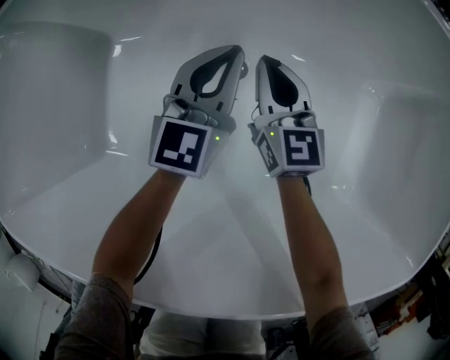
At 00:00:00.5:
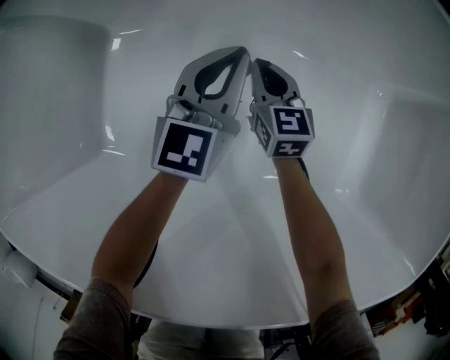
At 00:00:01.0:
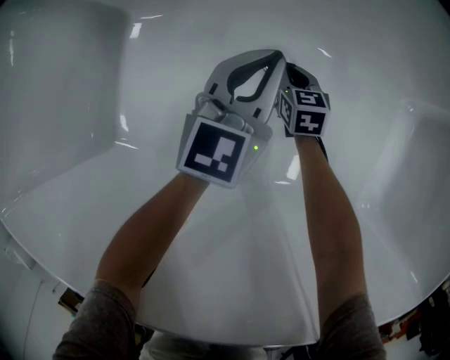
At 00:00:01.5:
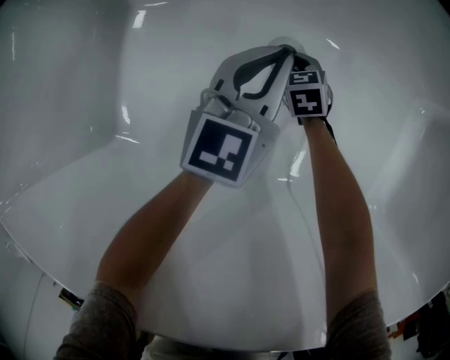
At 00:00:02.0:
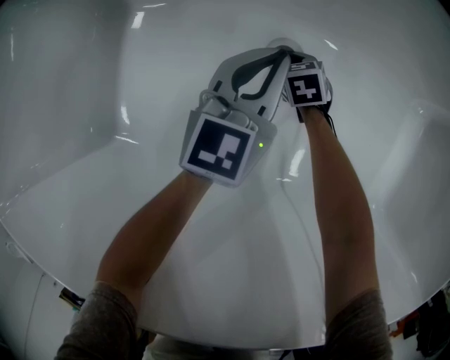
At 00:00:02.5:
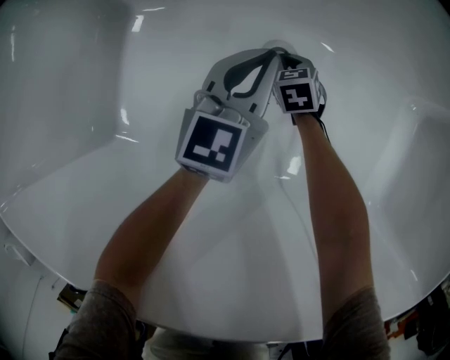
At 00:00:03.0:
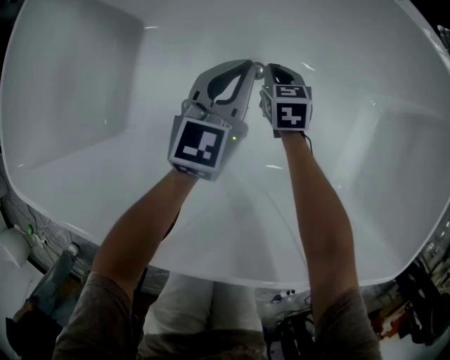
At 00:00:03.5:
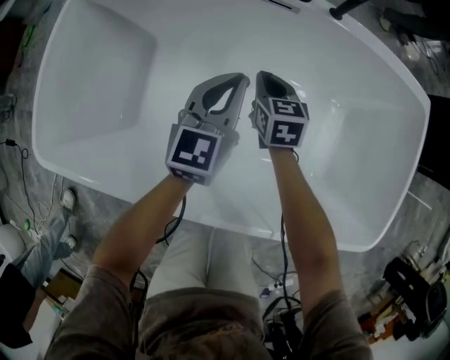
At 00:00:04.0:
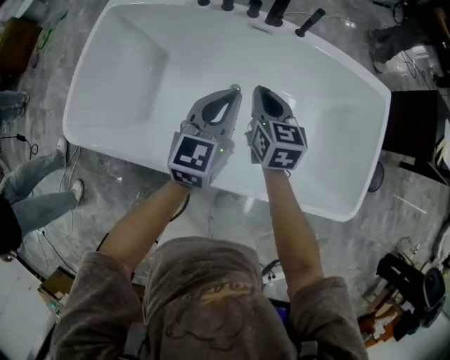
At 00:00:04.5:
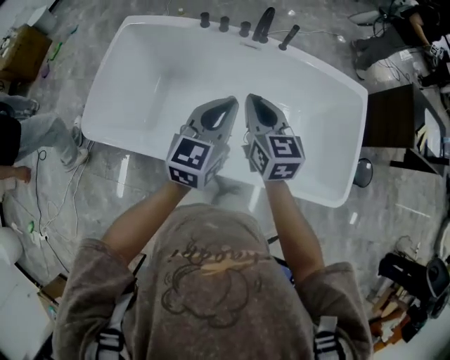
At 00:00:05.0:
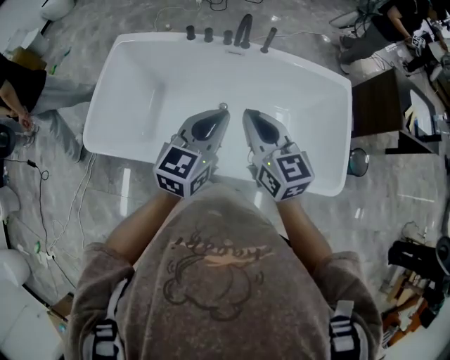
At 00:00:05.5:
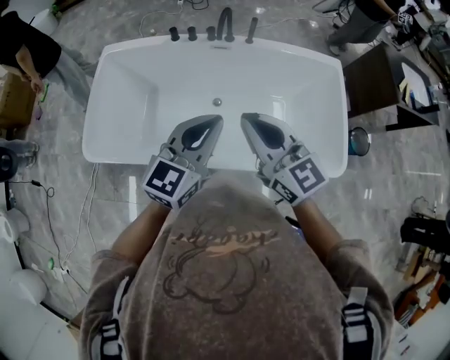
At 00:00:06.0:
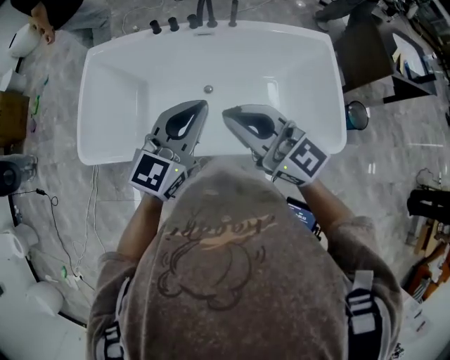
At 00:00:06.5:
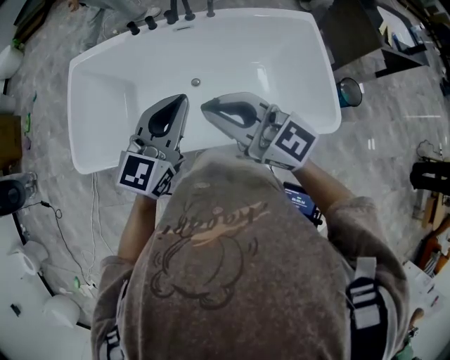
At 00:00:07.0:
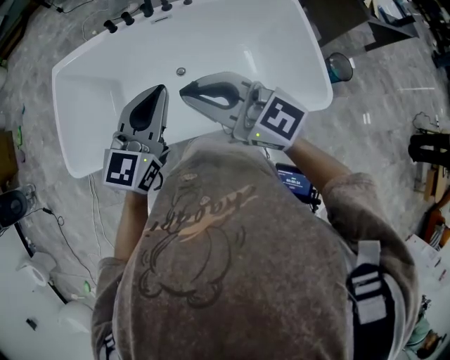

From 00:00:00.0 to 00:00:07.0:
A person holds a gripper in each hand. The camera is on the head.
From 00:00:00.0 to 00:00:02.0: The right gripper travels downward by about 30 cm, and points its fingers roughly 40 degrees further downward; the left gripper goes approximately 10 cm downward.
From 00:00:02.0 to 00:00:03.5: Both grippers move upward, some 40 cm. The right gripper swivels approximately 20 degrees.
From 00:00:03.5 to 00:00:05.0: Both grippers move upward and backward, approximately 50 cm. The right gripper turns by about 30 degrees.
From 00:00:05.0 to 00:00:07.0: The left gripper moves some 5 cm; the right gripper shifts some 10 cm backward, and swivels approximately 30 degrees.

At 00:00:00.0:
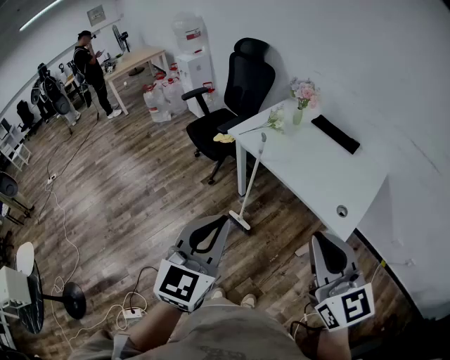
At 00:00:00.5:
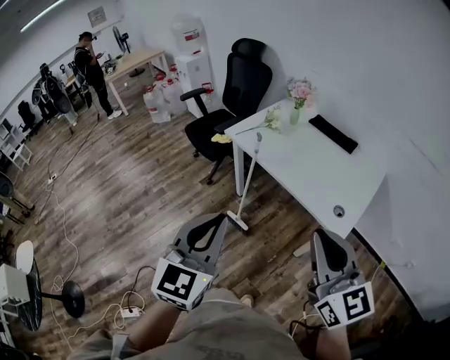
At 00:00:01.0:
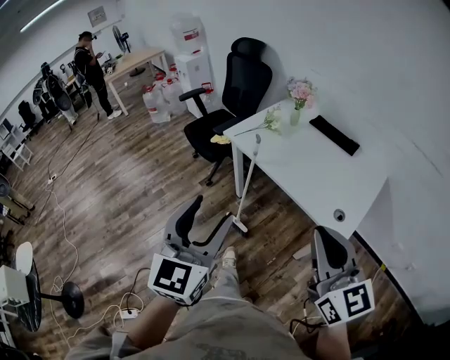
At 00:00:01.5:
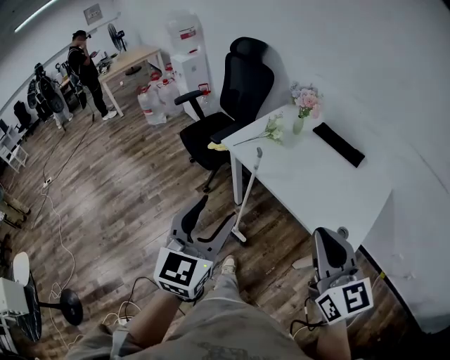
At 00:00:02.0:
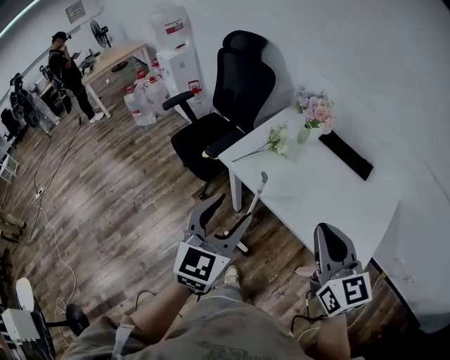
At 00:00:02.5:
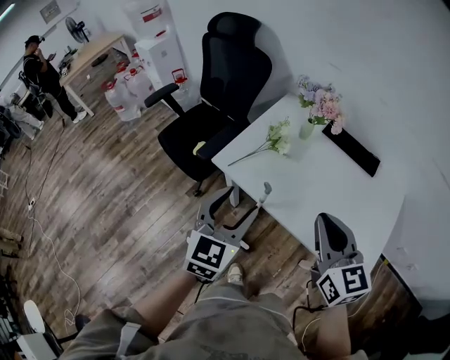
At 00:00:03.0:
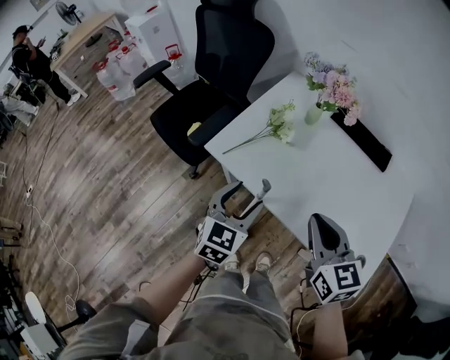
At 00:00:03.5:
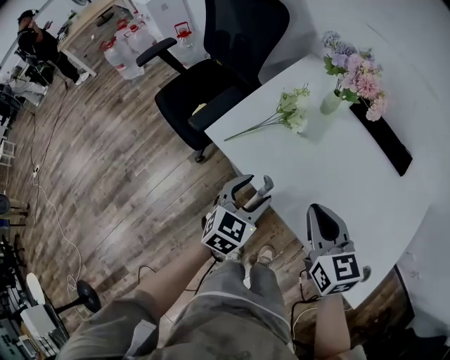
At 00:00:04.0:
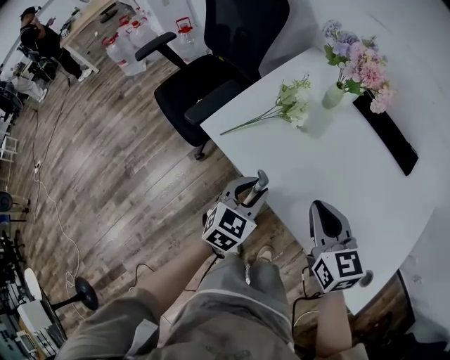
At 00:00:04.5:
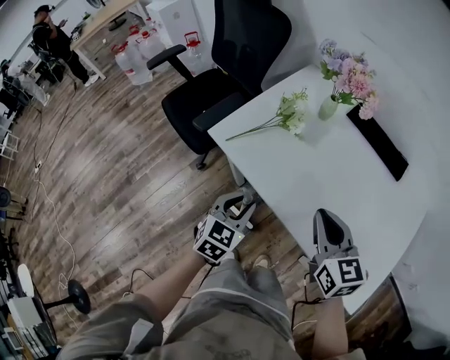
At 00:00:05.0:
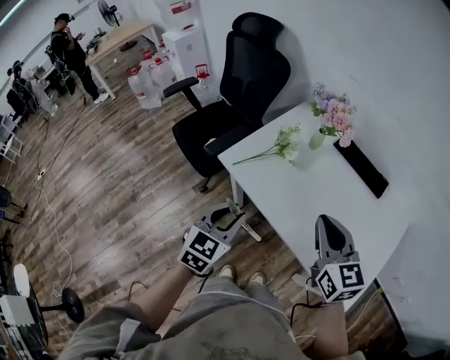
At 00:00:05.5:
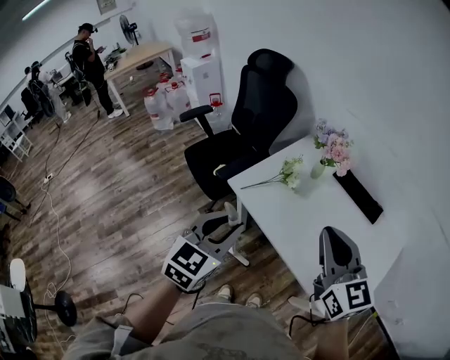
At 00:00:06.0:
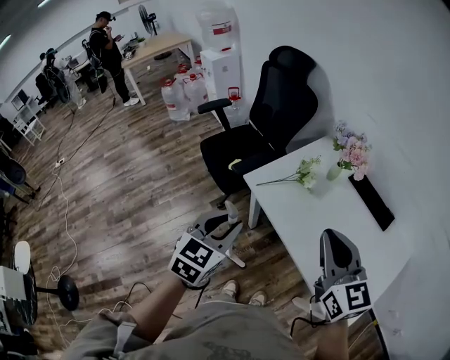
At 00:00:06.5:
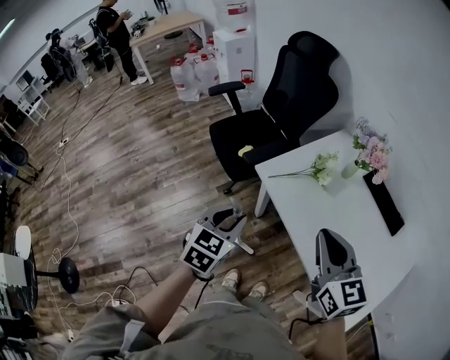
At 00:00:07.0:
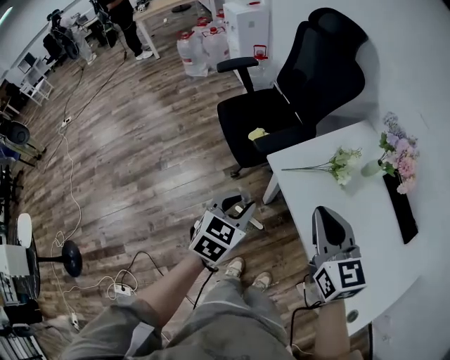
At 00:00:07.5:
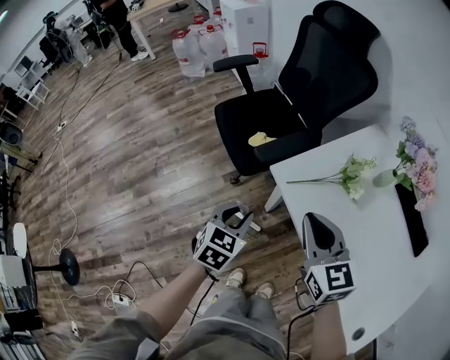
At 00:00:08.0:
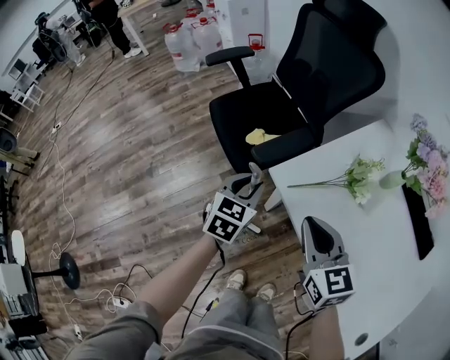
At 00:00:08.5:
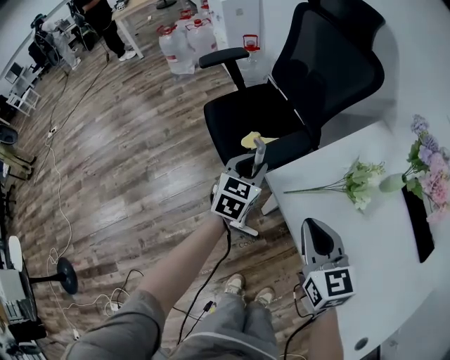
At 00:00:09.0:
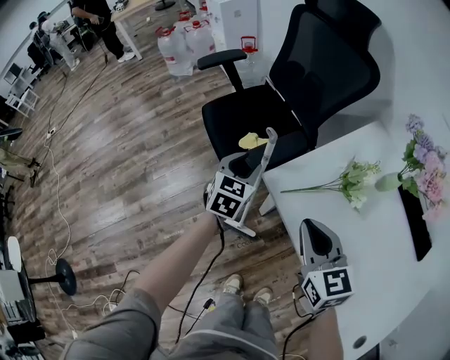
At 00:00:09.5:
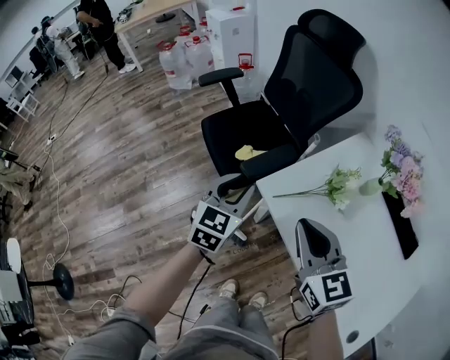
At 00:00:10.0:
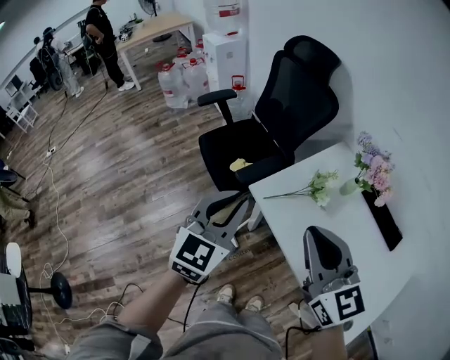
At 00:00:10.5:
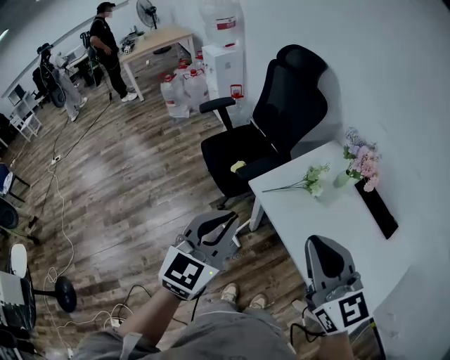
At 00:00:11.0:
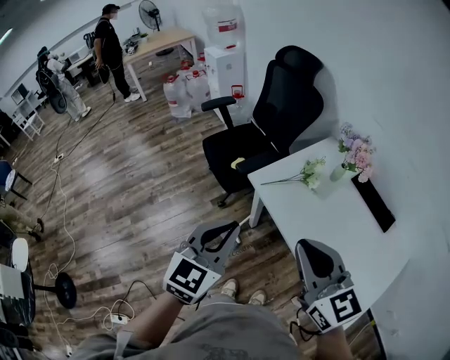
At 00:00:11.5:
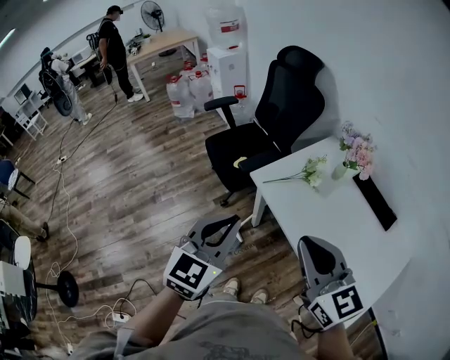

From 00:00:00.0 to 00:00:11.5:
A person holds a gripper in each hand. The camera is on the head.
From 00:00:00.0 to 00:00:02.0: The two grippers go approximately 30 cm forward. The left gripper opens its fingers.
From 00:00:02.0 to 00:00:04.0: Both grippers move downward and forward, some 35 cm. The left gripper changes its angle by about 30 degrees, and closes its fingers.
From 00:00:04.0 to 00:00:06.0: The left gripper travels upward, to the left and backward by roughly 30 cm. Meanwhile the right gripper shifts about 25 cm upward, and turns by some 20 degrees.
From 00:00:06.0 to 00:00:07.5: The right gripper shifts some 30 cm downward, forward and to the left, while the left gripper heads downward and forward, covering some 25 cm.
From 00:00:07.5 to 00:00:09.5: The left gripper heads forward and upward, covering some 15 cm.
From 00:00:09.5 to 00:00:11.5: Both grippers move backward and upward, about 30 cm. The left gripper closes up.

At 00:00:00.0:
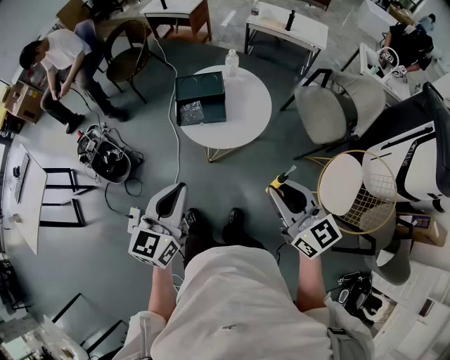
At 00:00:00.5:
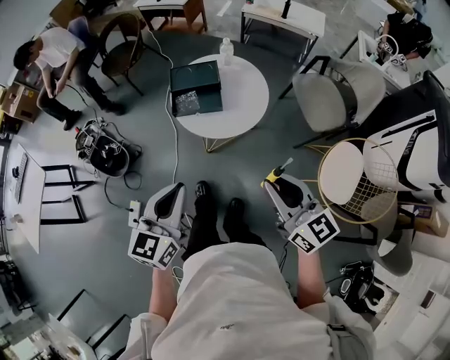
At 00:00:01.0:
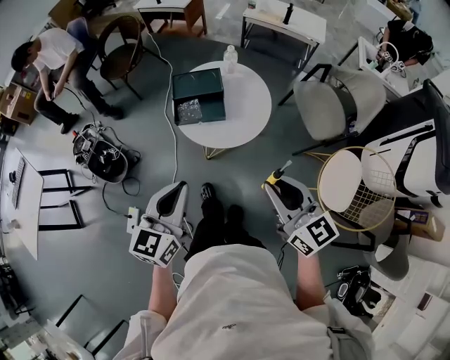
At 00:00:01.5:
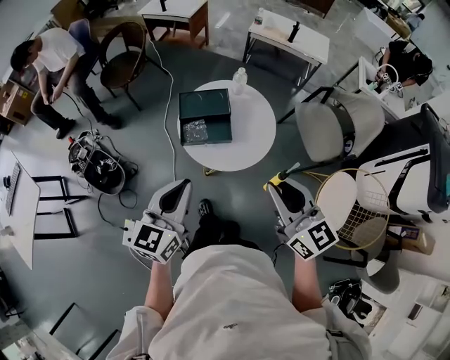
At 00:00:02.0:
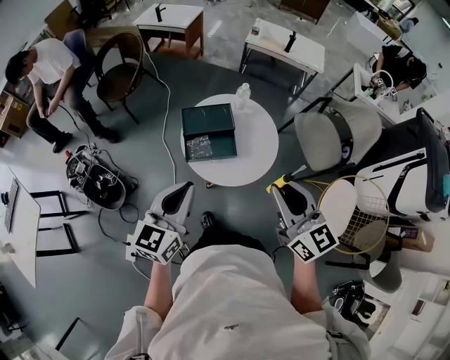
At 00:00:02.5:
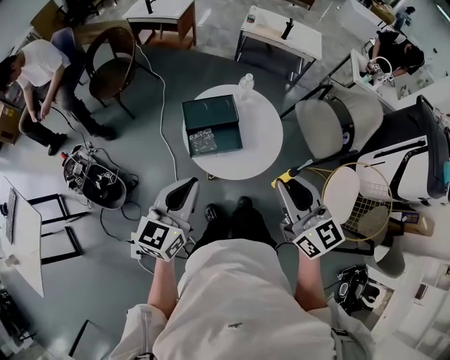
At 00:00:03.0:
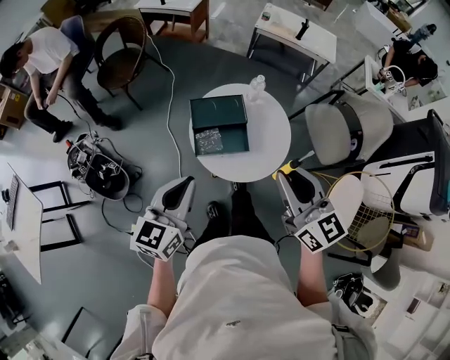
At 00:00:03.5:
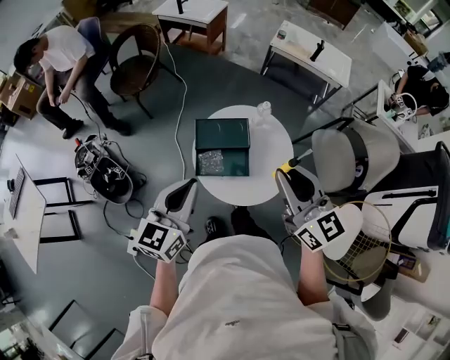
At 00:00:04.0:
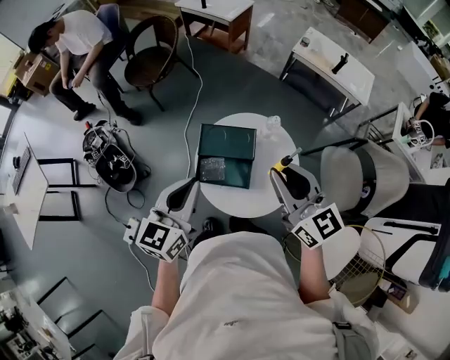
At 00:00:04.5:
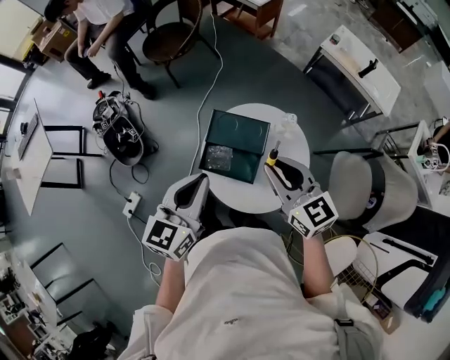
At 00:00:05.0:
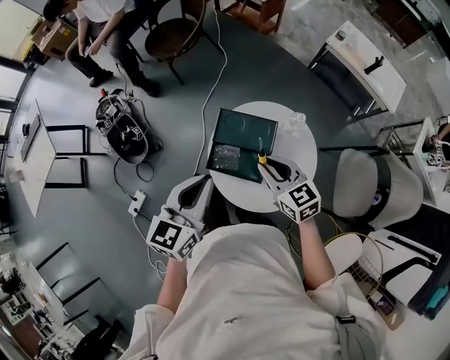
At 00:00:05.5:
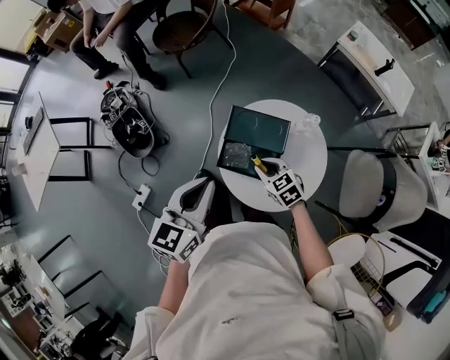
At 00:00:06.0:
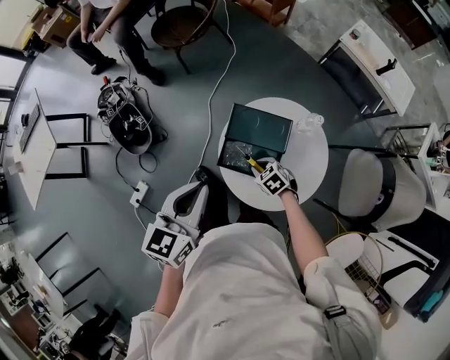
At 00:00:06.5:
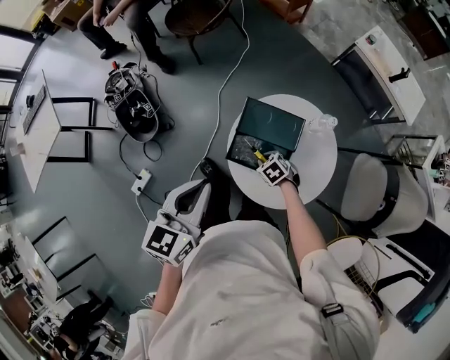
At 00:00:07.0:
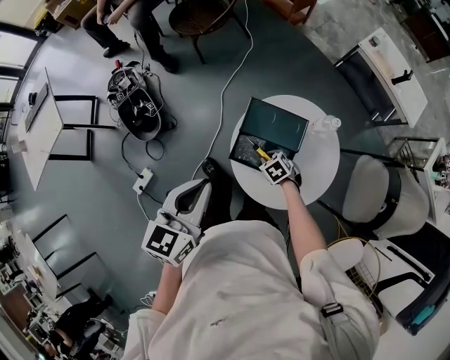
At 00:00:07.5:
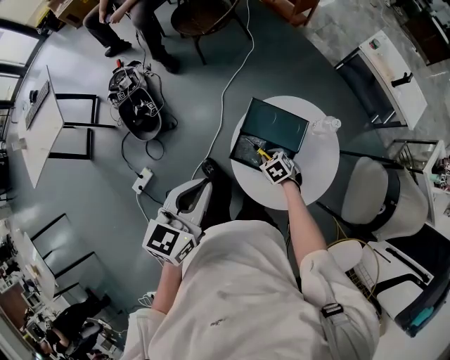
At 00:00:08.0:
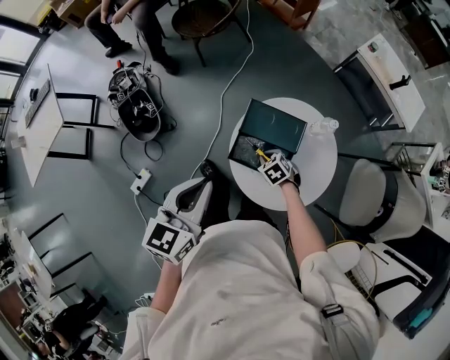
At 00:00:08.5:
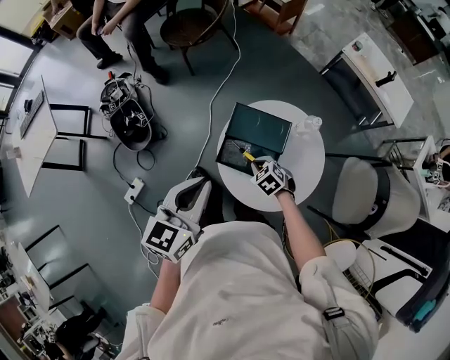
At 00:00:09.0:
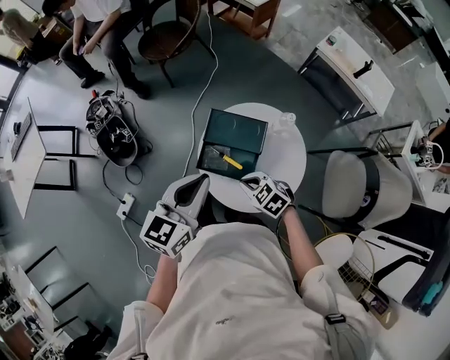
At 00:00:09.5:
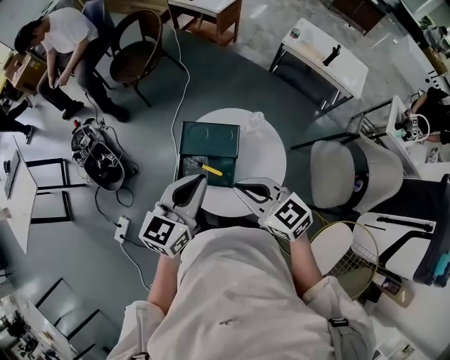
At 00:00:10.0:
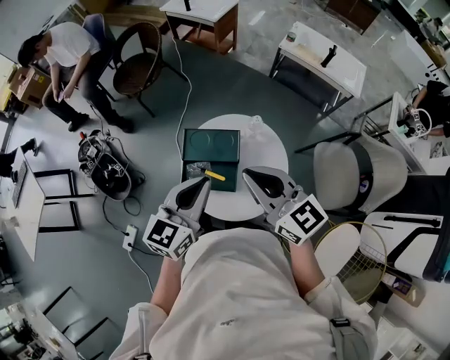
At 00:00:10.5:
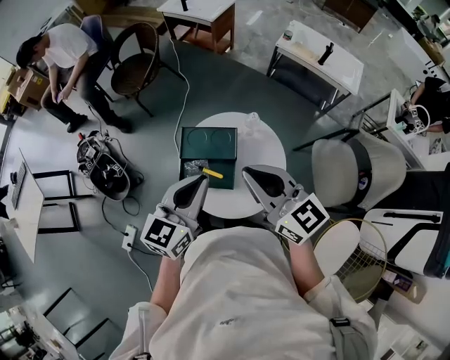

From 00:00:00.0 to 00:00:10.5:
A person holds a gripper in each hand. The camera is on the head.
From 00:00:00.0 to 00:00:02.0: The grippers both shift forward and to the left by approximately 20 cm.
From 00:00:02.0 to 00:00:04.0: Both grippers travel together forward, approximately 20 cm.
From 00:00:04.0 to 00:00:06.5: The right gripper goes some 40 cm downward, and points its fingers roughly 60 degrees further downward, while the left gripper moves to the left, roughly 10 cm.
From 00:00:06.5 to 00:00:08.5: The right gripper shifts about 5 cm upward.
From 00:00:08.5 to 00:00:10.5: The left gripper shifts some 15 cm to the right; the right gripper moves upward, some 35 cm, and points its fingers some 60 degrees further upward.
